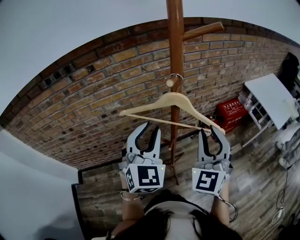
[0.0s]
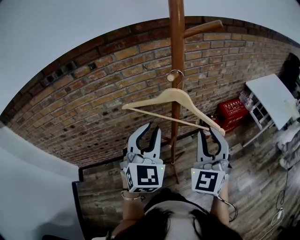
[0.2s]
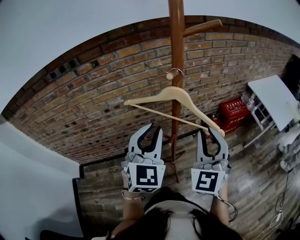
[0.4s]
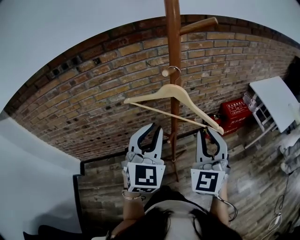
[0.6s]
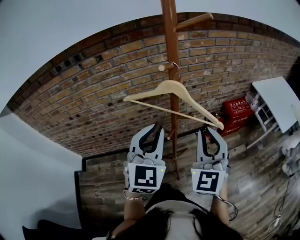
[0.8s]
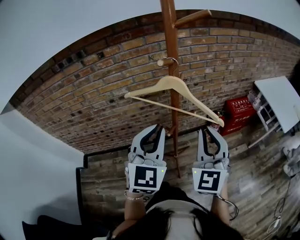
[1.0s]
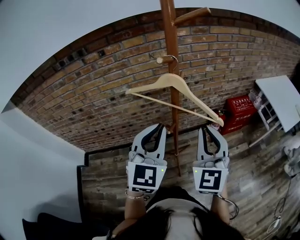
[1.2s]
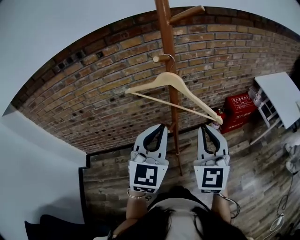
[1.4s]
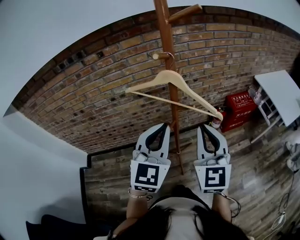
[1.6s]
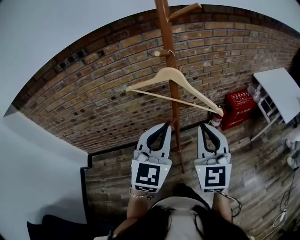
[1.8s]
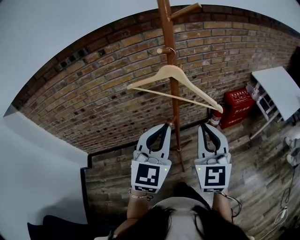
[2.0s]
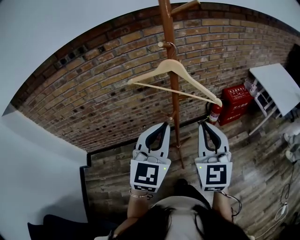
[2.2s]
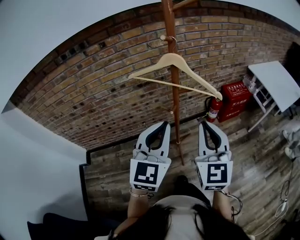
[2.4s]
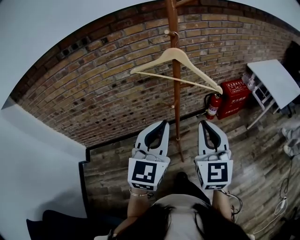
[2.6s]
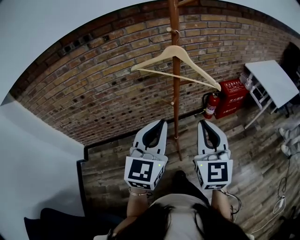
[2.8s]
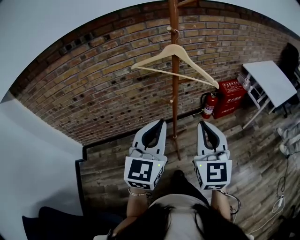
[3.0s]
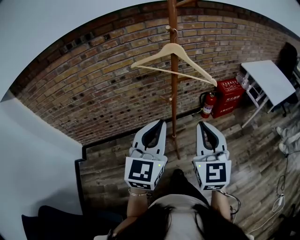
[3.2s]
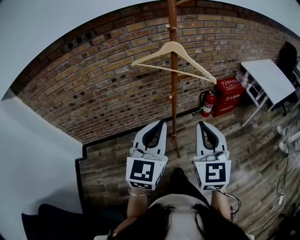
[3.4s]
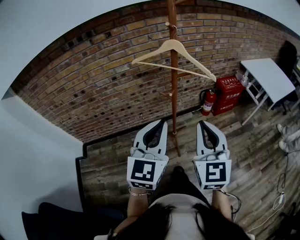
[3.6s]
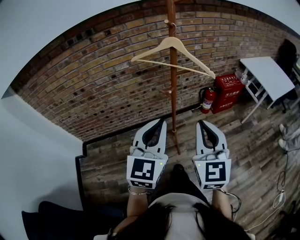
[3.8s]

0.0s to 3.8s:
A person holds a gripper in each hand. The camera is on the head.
0.0s to 1.2s: The right gripper moves approximately 5 cm. The left gripper heads backward and to the right, covering approximately 10 cm, and closes up.
1.2s to 2.6s: Both grippers travel together backward, some 10 cm.
2.6s to 3.8s: The grippers both shift backward by roughly 10 cm.

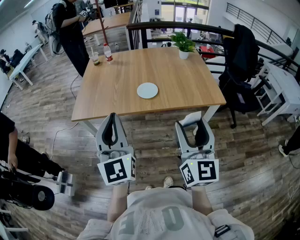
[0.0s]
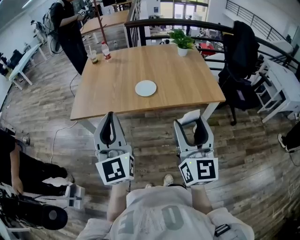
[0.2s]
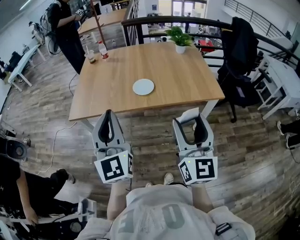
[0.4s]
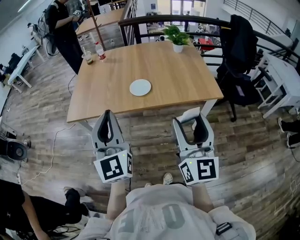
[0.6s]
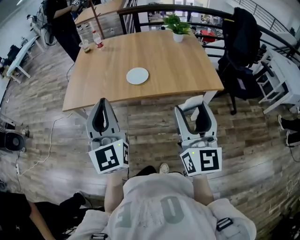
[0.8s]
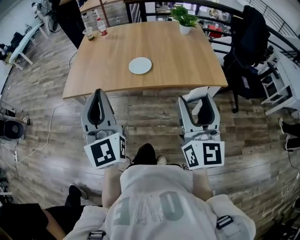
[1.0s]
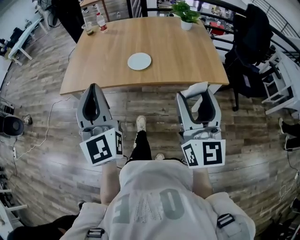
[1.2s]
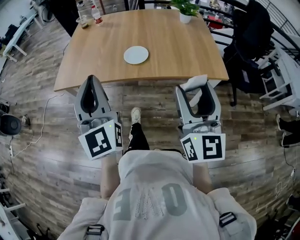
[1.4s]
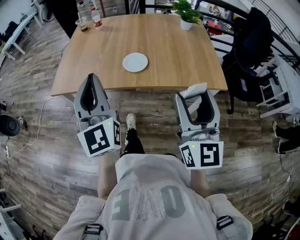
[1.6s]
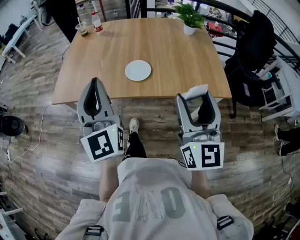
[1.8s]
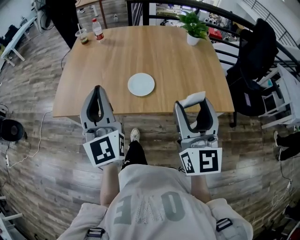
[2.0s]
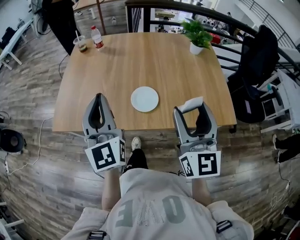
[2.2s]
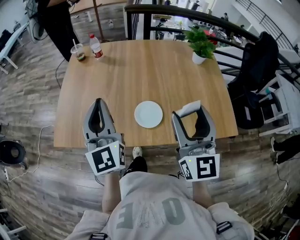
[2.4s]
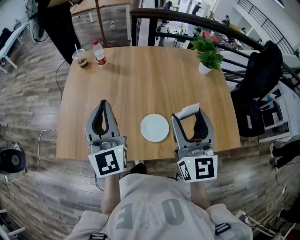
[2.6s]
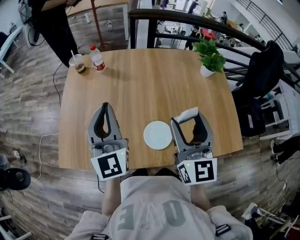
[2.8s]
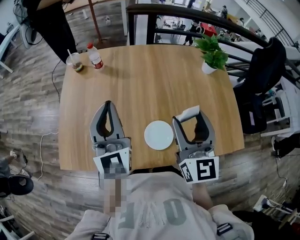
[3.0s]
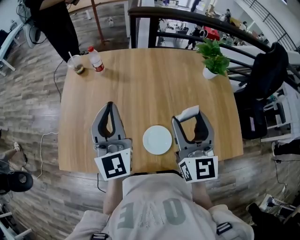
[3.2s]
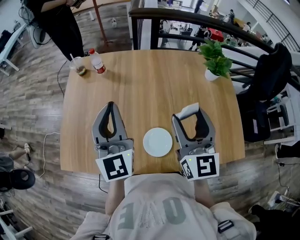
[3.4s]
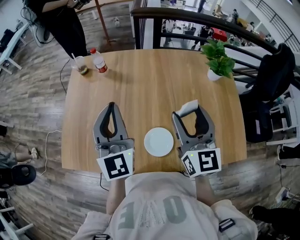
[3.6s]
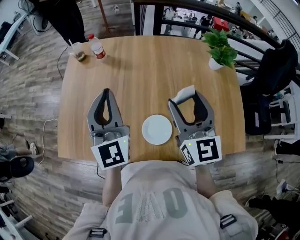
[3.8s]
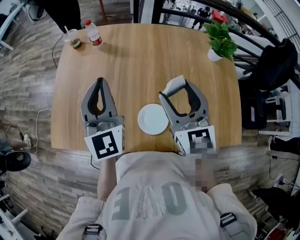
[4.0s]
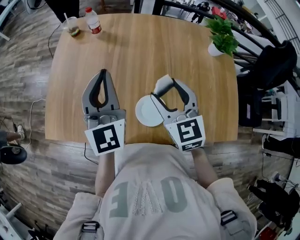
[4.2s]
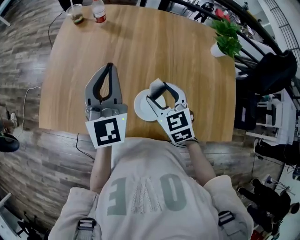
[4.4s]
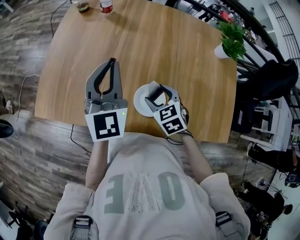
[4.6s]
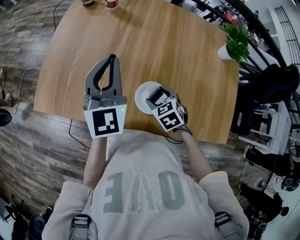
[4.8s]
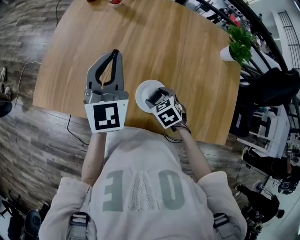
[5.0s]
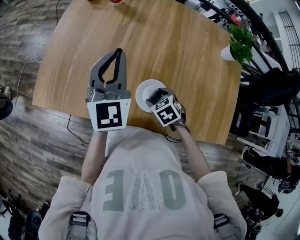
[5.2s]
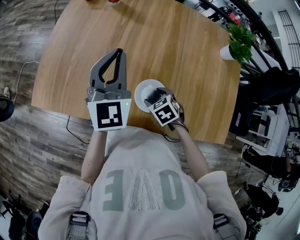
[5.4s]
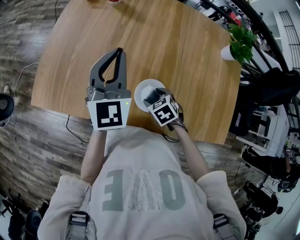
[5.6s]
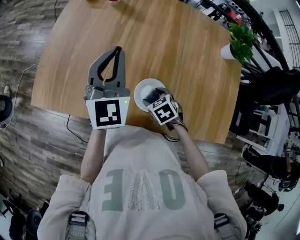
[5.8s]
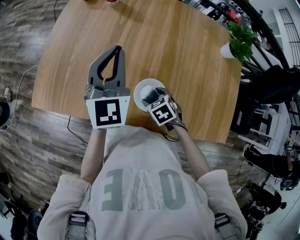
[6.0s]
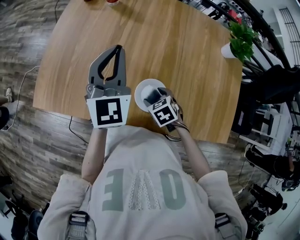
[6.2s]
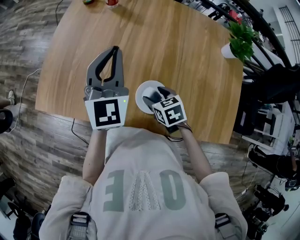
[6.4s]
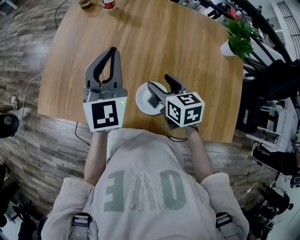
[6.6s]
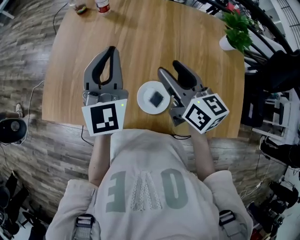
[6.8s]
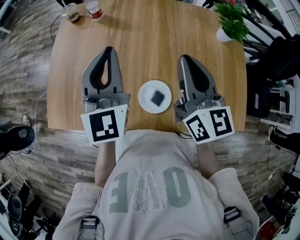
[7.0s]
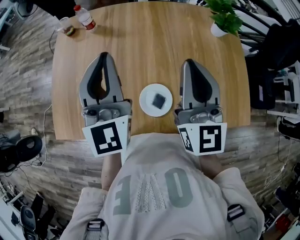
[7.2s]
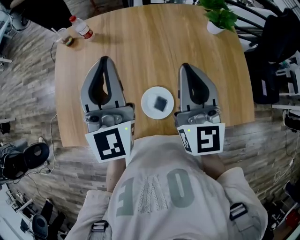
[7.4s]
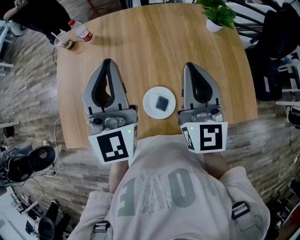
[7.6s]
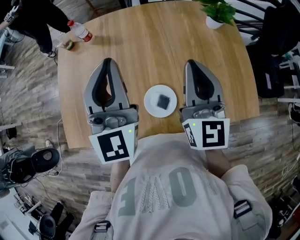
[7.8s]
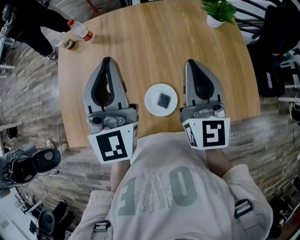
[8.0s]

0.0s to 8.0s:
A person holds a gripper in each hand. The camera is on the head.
0.0s to 1.6s: The left gripper shifts some 10 cm forward, while the right gripper heads forward and to the right, covering some 10 cm.
1.6s to 3.2s: The grippers both shift forward by approximately 40 cm.
3.2s to 4.8s: The right gripper heads downward, covering some 30 cm, and tilts its fingers about 60 degrees downward. The left gripper shifts approximately 10 cm downward.
4.8s to 6.4s: The grippers stay close to where they were, moving slightly.
6.4s to 8.0s: The right gripper goes some 30 cm upward, angles its fingers upward, by about 60 degrees, and closes its fingers, while the left gripper goes about 10 cm upward, and turns by approximately 20 degrees.

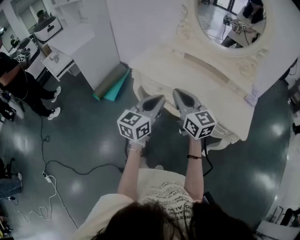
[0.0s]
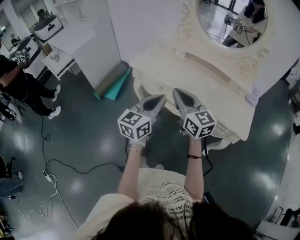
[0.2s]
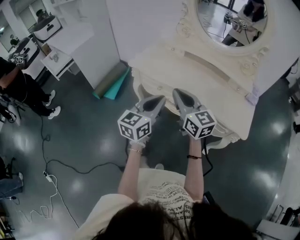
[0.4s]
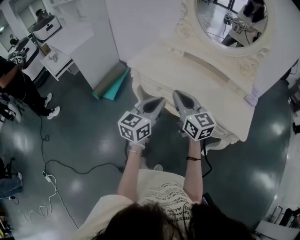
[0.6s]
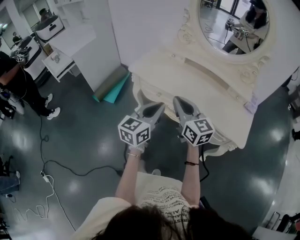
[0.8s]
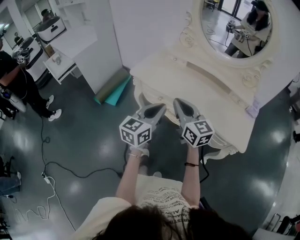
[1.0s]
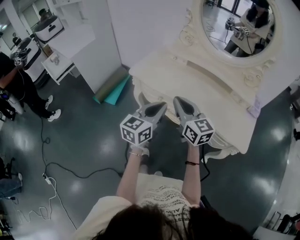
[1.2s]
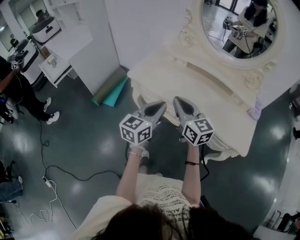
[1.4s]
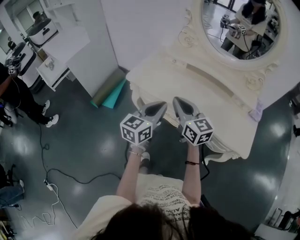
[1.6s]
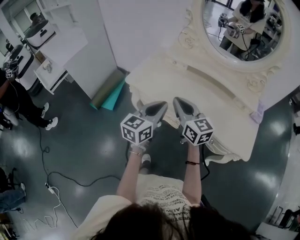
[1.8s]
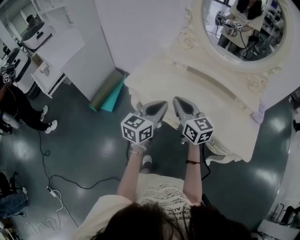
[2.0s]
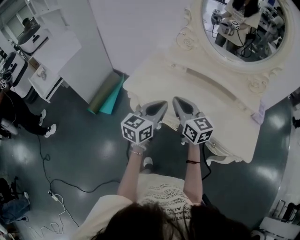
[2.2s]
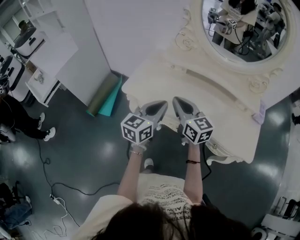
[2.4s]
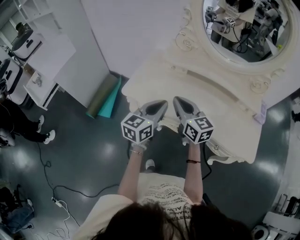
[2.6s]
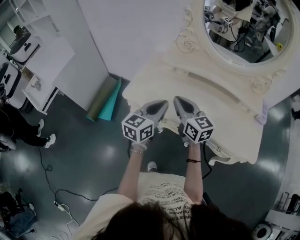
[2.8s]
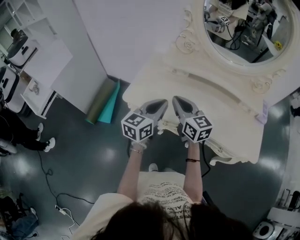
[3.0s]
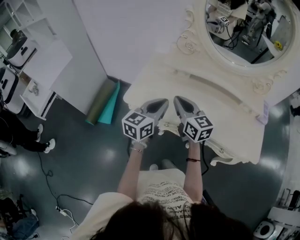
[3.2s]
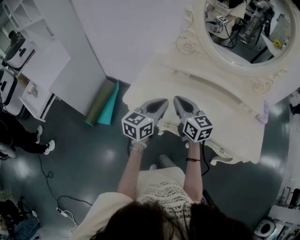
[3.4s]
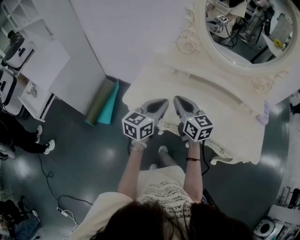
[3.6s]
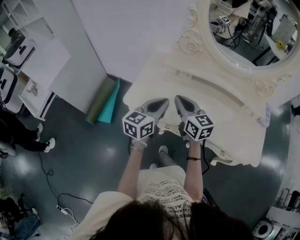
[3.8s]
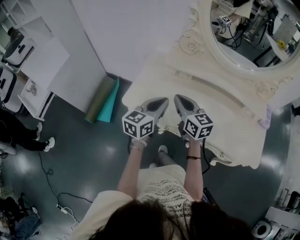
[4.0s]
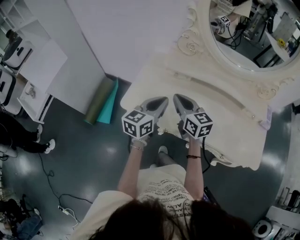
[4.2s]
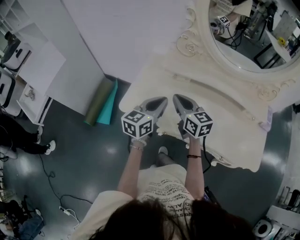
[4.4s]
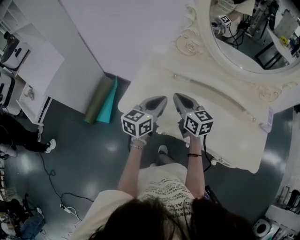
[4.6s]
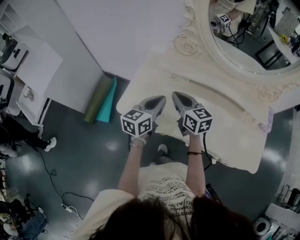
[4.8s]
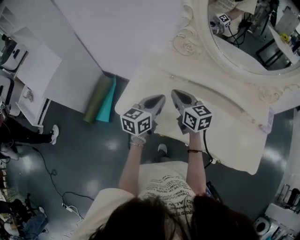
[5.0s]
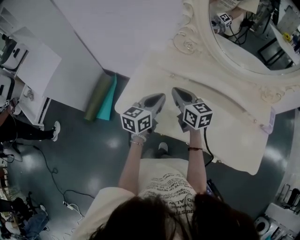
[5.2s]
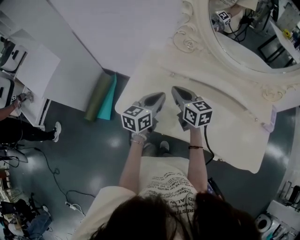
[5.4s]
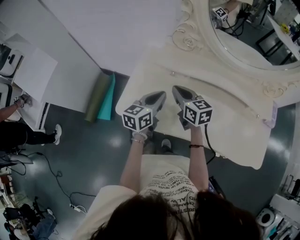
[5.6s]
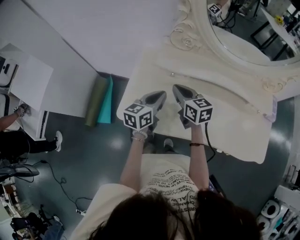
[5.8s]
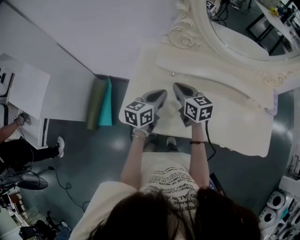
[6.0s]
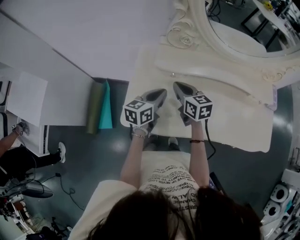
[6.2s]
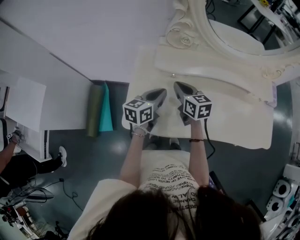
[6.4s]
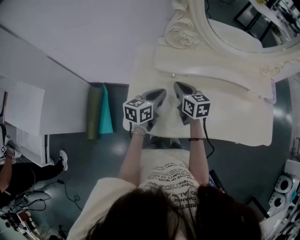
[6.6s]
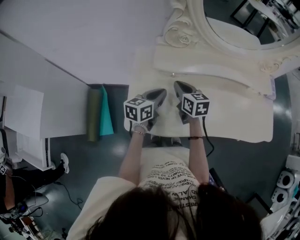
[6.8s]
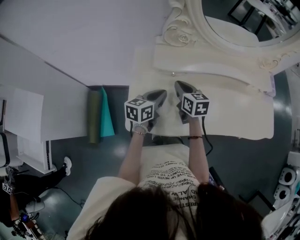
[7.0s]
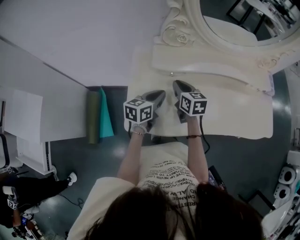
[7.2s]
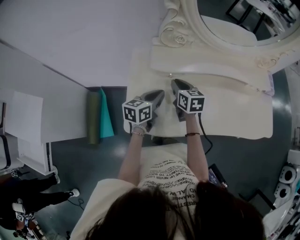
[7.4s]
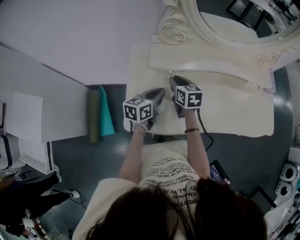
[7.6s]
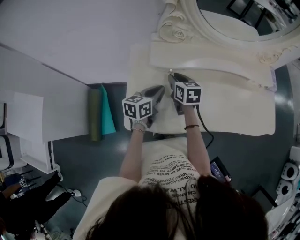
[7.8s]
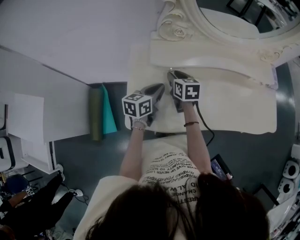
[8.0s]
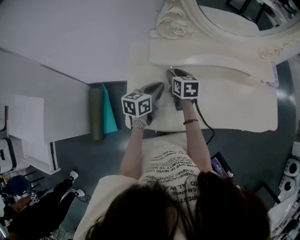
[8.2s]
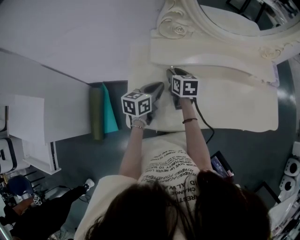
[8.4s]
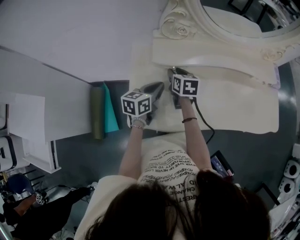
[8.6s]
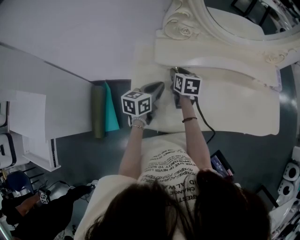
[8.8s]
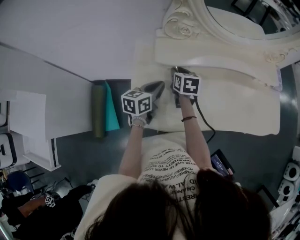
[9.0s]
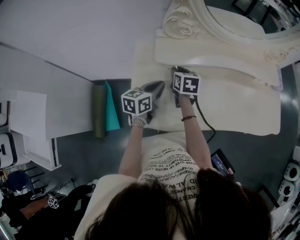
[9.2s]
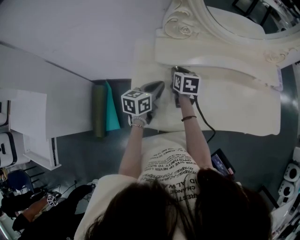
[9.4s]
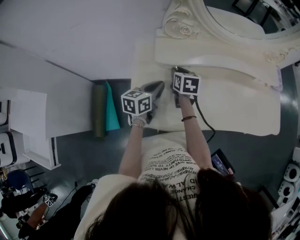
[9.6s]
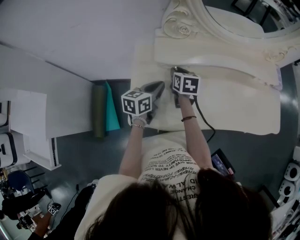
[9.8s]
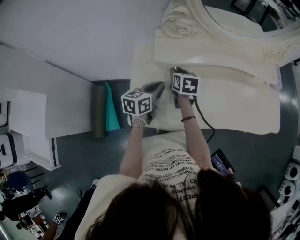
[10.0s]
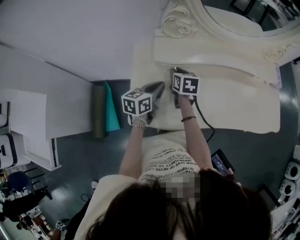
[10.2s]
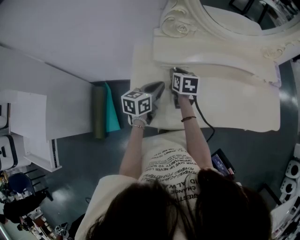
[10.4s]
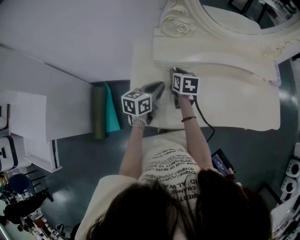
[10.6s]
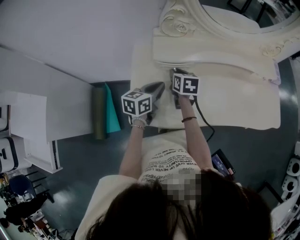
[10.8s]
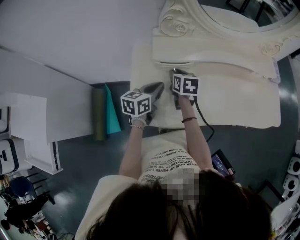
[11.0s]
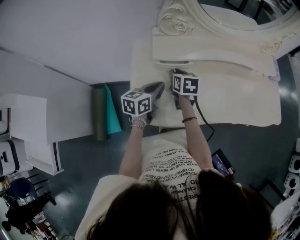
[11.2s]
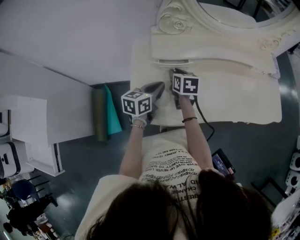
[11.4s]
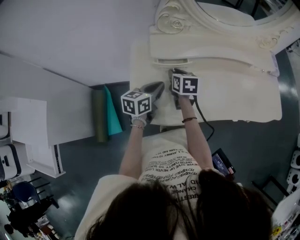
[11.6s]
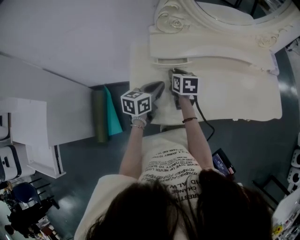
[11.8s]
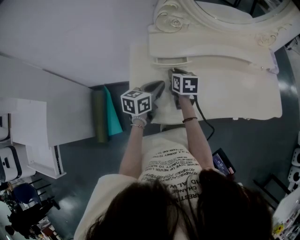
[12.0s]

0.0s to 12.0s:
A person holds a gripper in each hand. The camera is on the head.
0.0s to 1.6s: Both grippers travel together forward, some 10 cm.
1.6s to 3.0s: Both grippers travel together forward, roughly 15 cm.
3.0s to 4.4s: Both grippers move forward, about 10 cm.
4.4s to 6.0s: The two grippers go about 10 cm forward and downward.
6.0s to 7.6s: The right gripper moves some 5 cm, and changes its angle by roughly 20 degrees.
7.6s to 12.0s: There are only small adjustments of the grippers.
